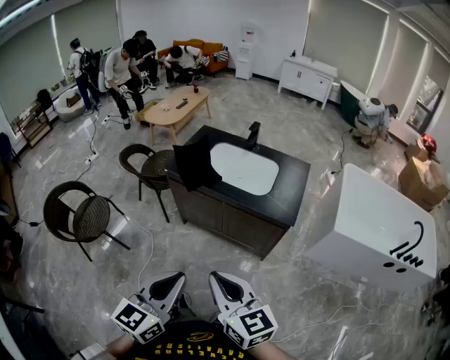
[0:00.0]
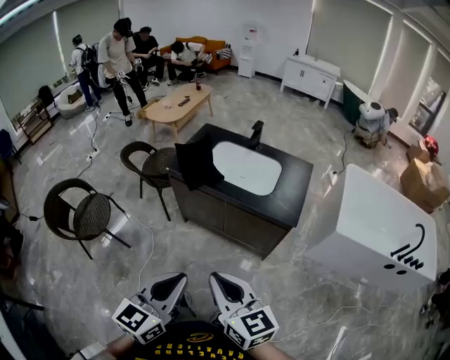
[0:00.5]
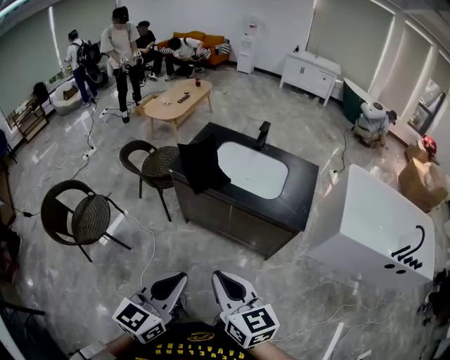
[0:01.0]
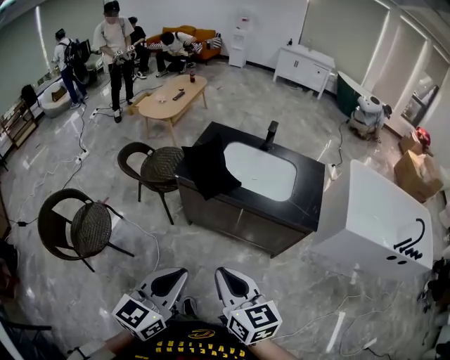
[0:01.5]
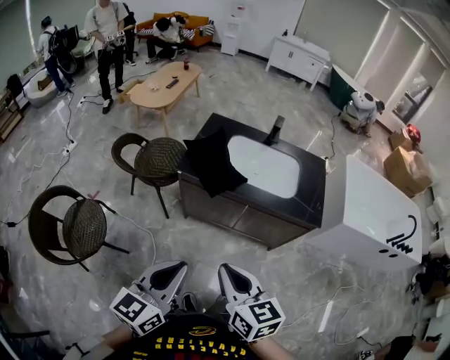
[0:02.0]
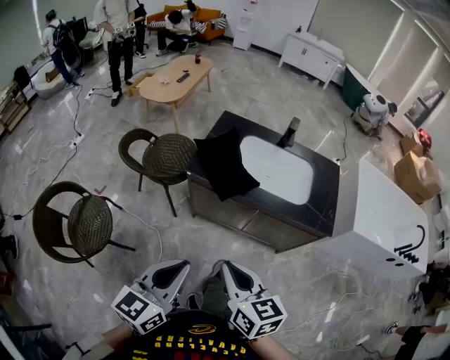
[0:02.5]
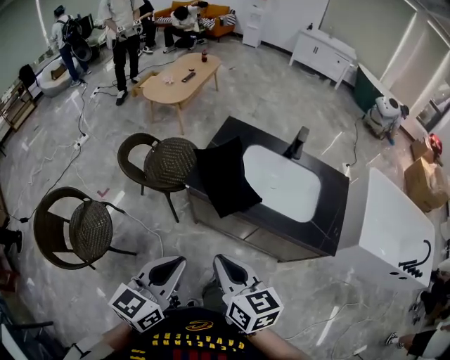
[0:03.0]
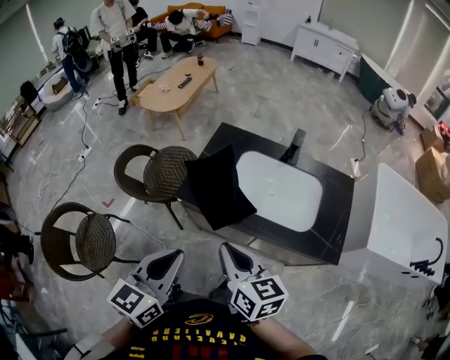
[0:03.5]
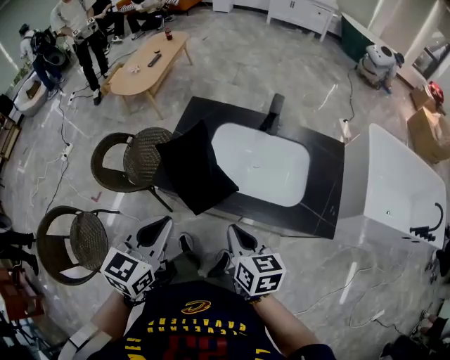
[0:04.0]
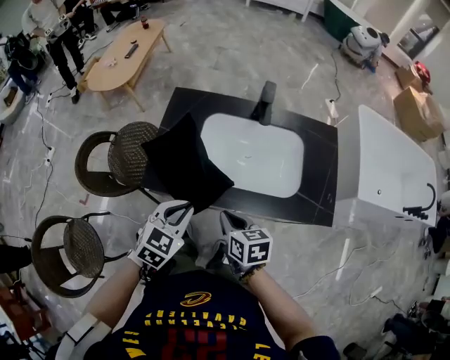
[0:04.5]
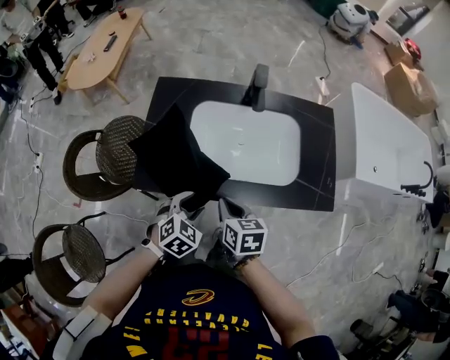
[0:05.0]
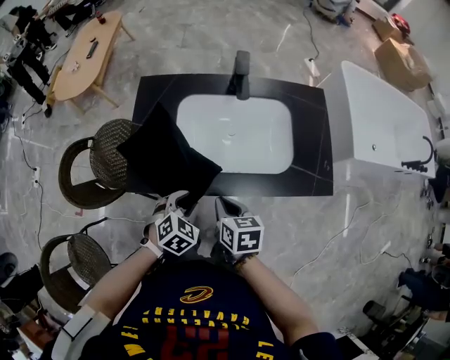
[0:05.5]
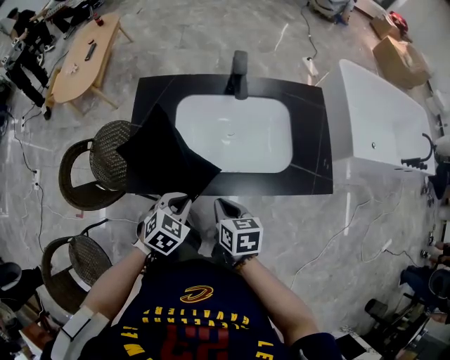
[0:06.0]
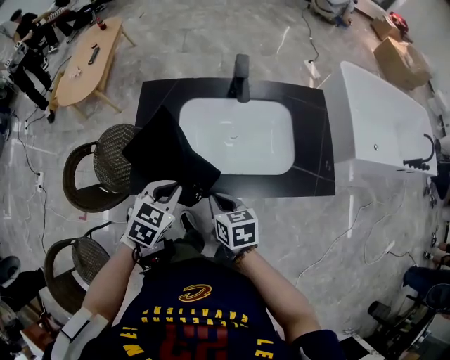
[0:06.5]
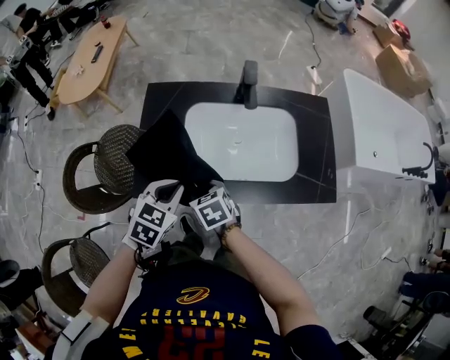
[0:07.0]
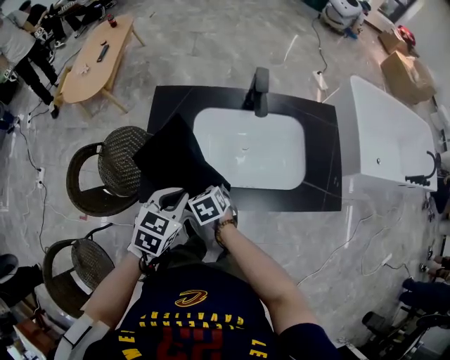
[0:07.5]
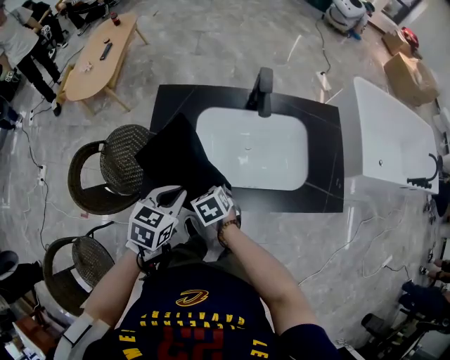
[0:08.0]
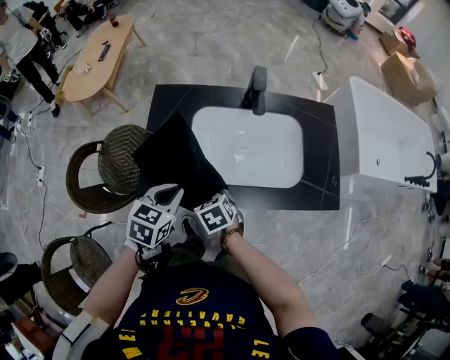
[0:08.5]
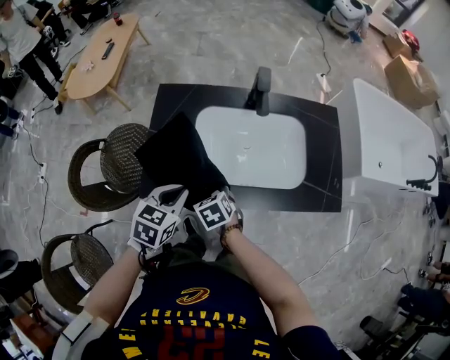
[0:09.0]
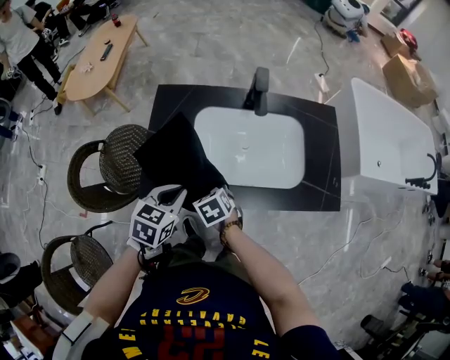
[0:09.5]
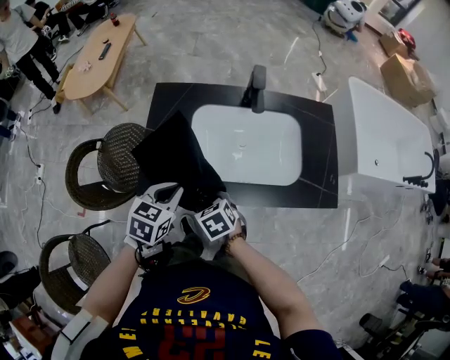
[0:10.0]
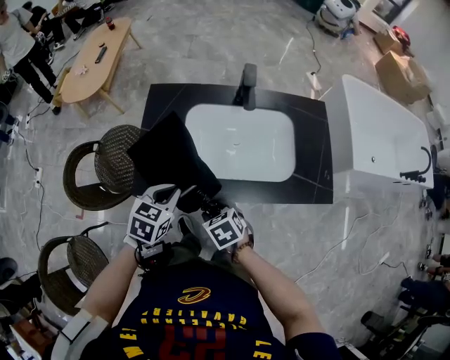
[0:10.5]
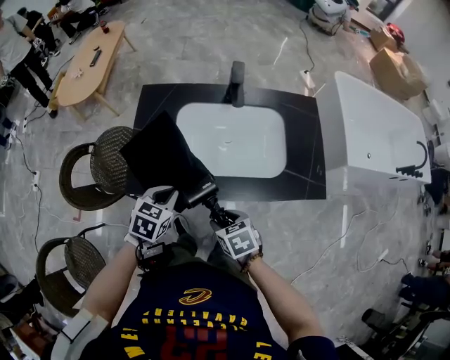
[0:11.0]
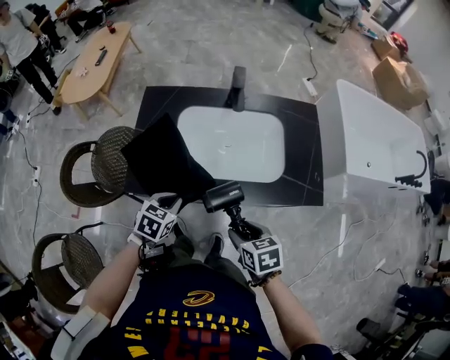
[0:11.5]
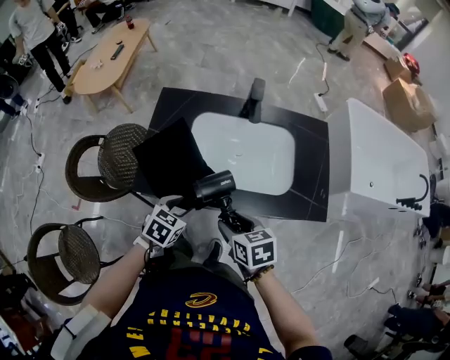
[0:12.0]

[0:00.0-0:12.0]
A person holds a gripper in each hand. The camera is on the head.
0:00.0 to 0:02.0: The grippers both shift to the left and forward by some 25 cm.
0:02.0 to 0:04.0: The left gripper travels forward by roughly 30 cm. Meanwhile the right gripper shifts approximately 30 cm forward and to the right.
0:04.0 to 0:06.0: The right gripper travels downward and forward by roughly 15 cm, and changes its angle by about 20 degrees, while the left gripper moves downward, approximately 25 cm, angles its fingers downward, by some 30 degrees, and opens, then closes again.
0:06.0 to 0:08.0: The left gripper is displaced forward, to the left and upward by roughly 10 cm, and turns by approximately 20 degrees; the right gripper is displaced to the left, forward and downward by about 15 cm, changes its angle by roughly 30 degrees, and opens its fingers.
0:08.0 to 0:10.0: The right gripper heads backward, covering approximately 5 cm.
0:10.0 to 0:12.0: The right gripper shifts approximately 15 cm to the right, upward and backward; the left gripper shifts about 10 cm downward and backward, and opens its fingers.

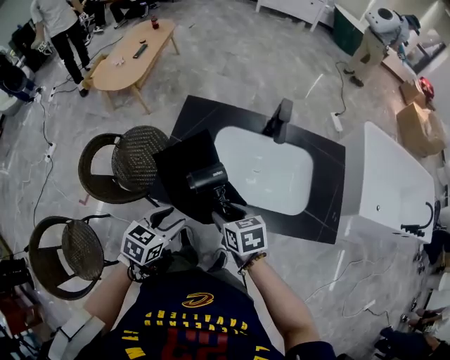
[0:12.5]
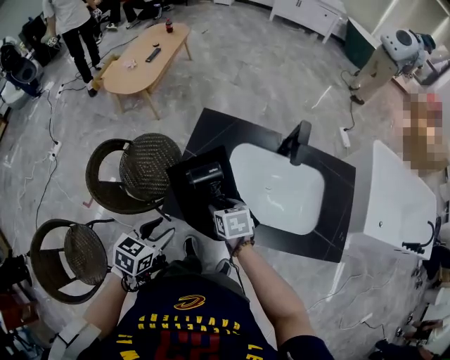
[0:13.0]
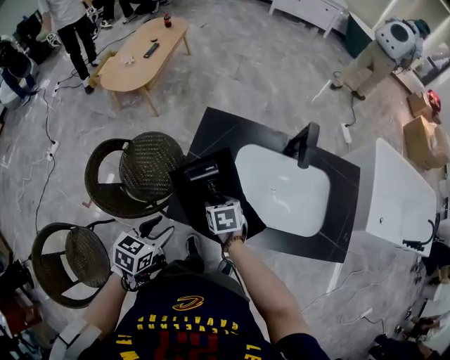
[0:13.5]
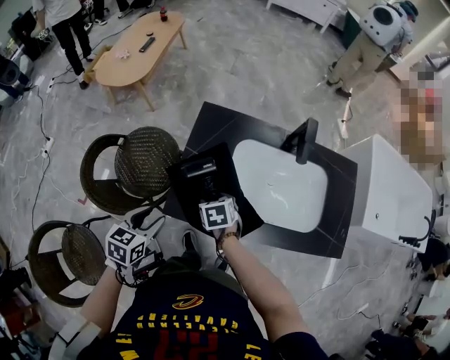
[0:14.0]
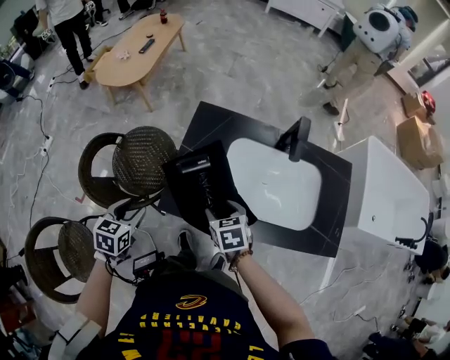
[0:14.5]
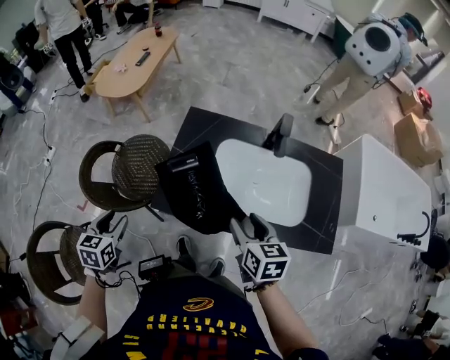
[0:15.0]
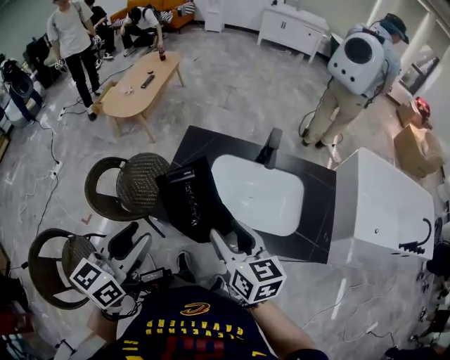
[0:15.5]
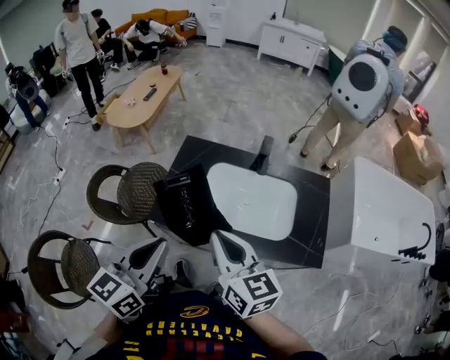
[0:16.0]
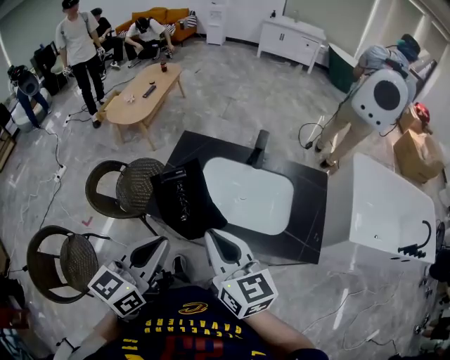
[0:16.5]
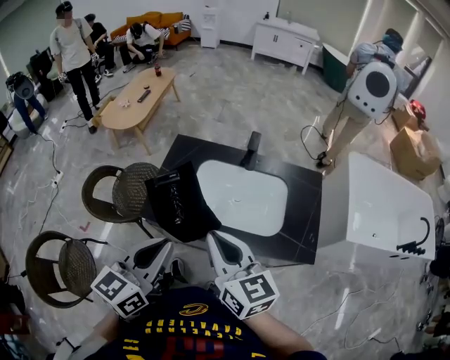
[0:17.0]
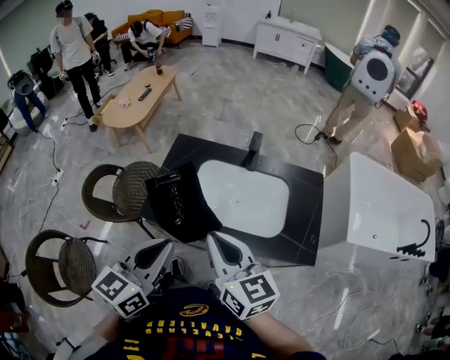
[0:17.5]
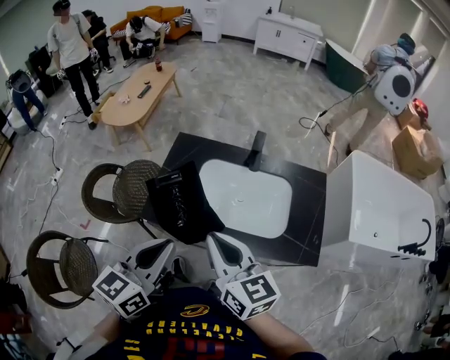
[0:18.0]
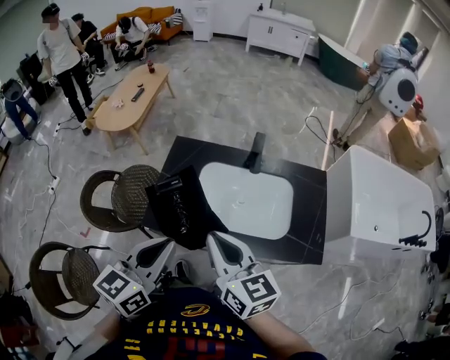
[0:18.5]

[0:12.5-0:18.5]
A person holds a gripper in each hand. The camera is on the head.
0:12.5 to 0:14.5: The left gripper goes roughly 20 cm to the left; the right gripper moves to the left and forward, about 10 cm.
0:14.5 to 0:16.5: The right gripper shifts roughly 35 cm upward and backward, angles its fingers upward, by roughly 50 degrees, and closes. The left gripper shifts some 40 cm upward, to the right and backward, tilts its fingers approximately 40 degrees upward, and closes up.
0:16.5 to 0:18.5: The left gripper travels forward by roughly 5 cm.

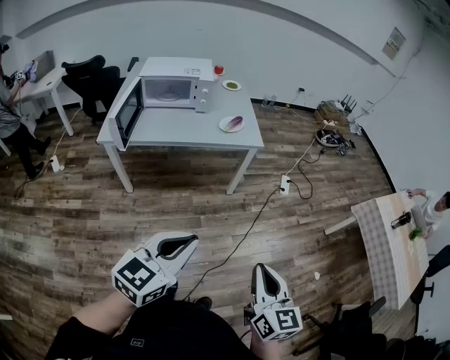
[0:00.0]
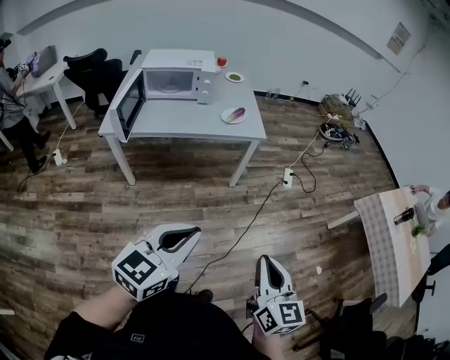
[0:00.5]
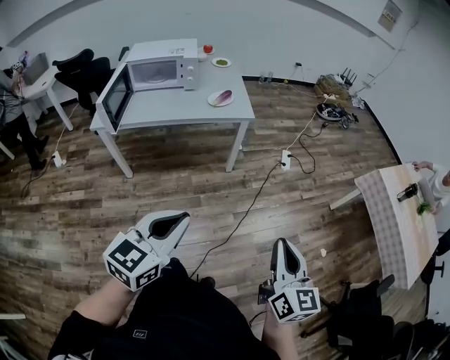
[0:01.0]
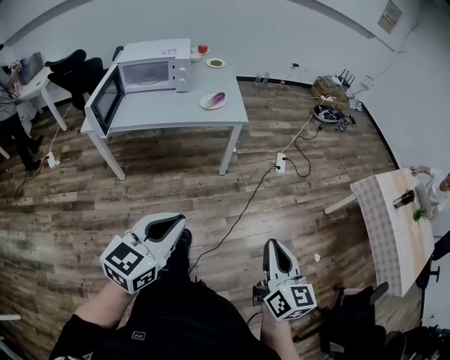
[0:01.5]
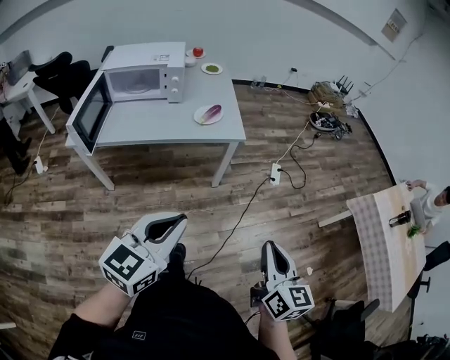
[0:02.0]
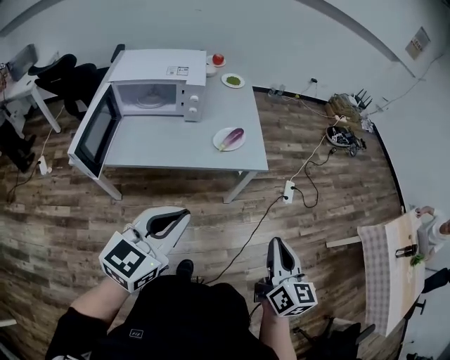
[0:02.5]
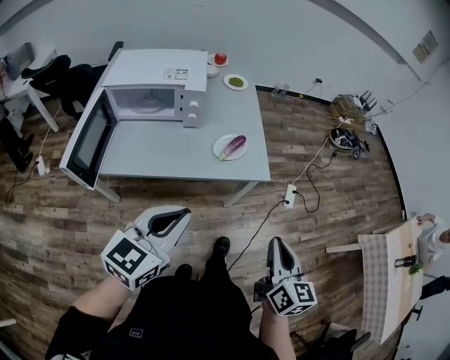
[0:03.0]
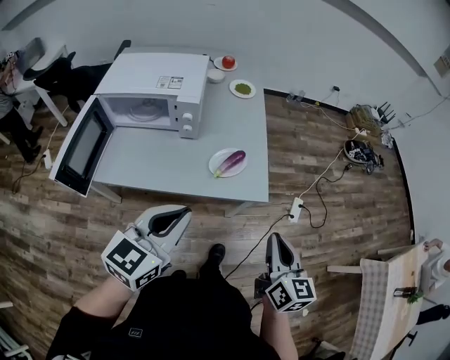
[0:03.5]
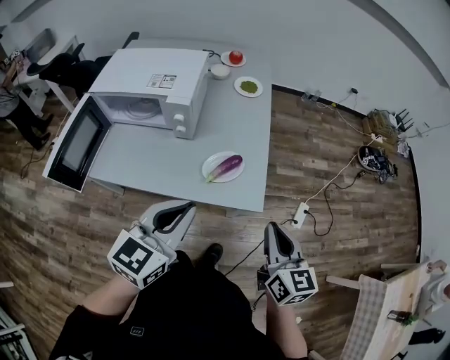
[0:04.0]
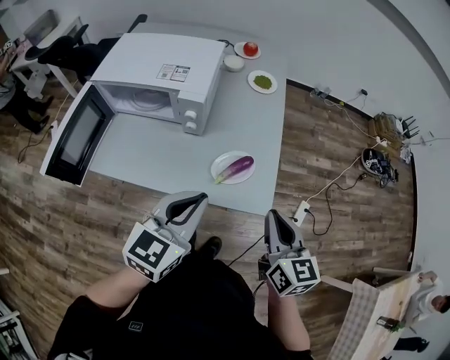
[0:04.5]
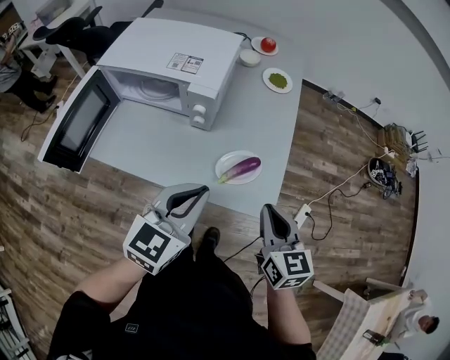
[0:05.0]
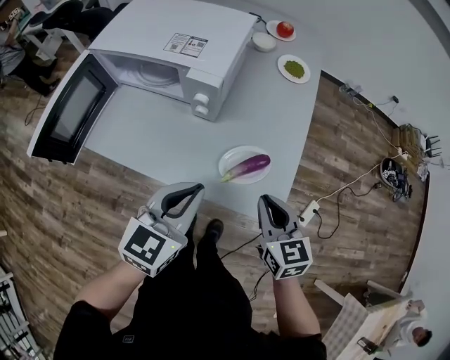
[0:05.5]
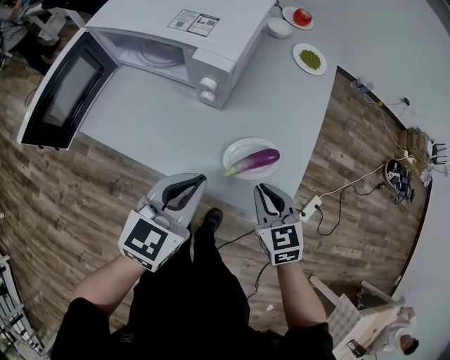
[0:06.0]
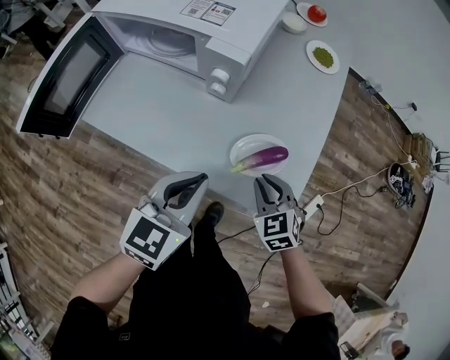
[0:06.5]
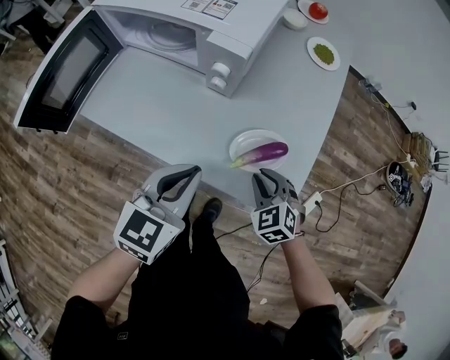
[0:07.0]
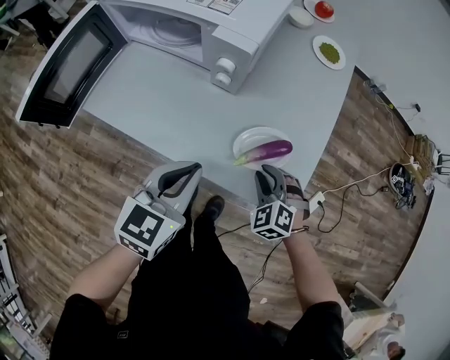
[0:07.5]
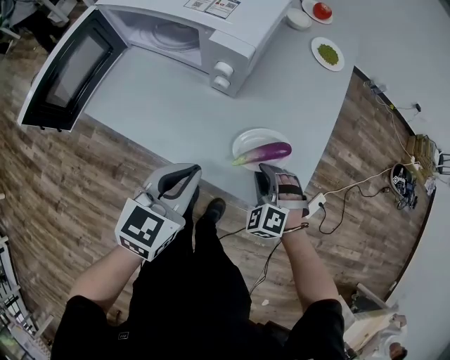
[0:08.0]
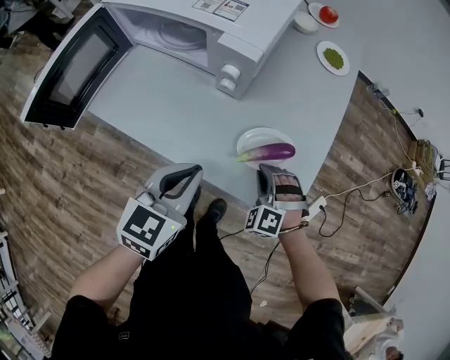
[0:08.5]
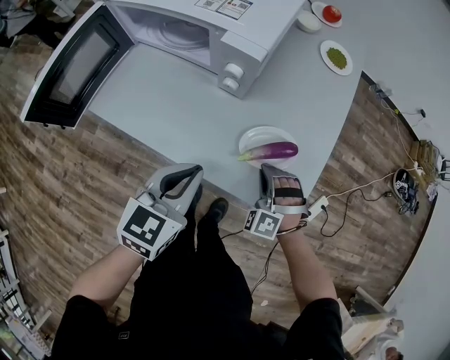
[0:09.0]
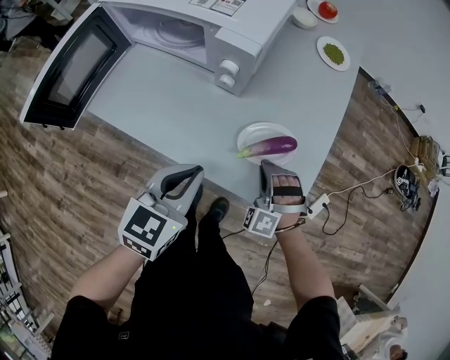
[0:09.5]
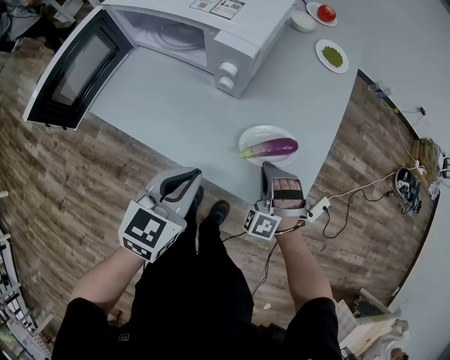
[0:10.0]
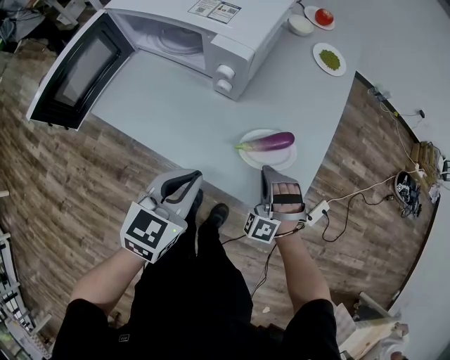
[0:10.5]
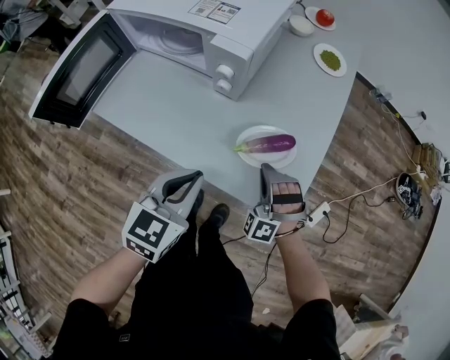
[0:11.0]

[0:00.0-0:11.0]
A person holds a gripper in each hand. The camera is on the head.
0:00.0 to 0:02.0: The right gripper moves forward and to the right, about 20 cm. The left gripper is displaced forward by roughly 15 cm.
0:02.0 to 0:03.5: Both grippers travel together forward, some 35 cm.
0:03.5 to 0:05.5: Both grippers move forward and downward, some 25 cm. The right gripper changes its angle by approximately 40 degrees.
0:05.5 to 0:07.5: The left gripper heads downward, covering about 10 cm; the right gripper travels downward by roughly 15 cm, and twists about 50 degrees counterclockwise, seen from behind.
0:07.5 to 0:09.0: The right gripper turns by some 30 degrees.
0:09.0 to 0:11.0: The grippers make only small movements.
